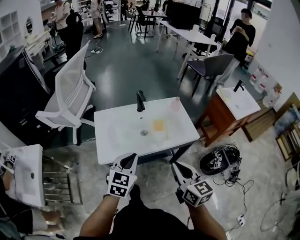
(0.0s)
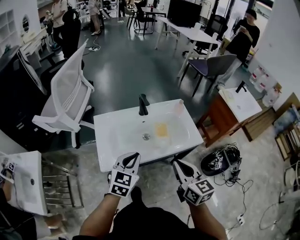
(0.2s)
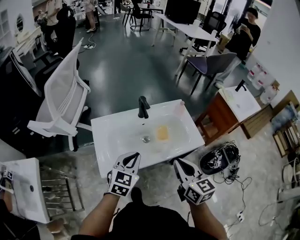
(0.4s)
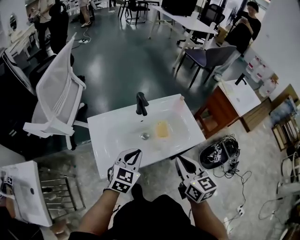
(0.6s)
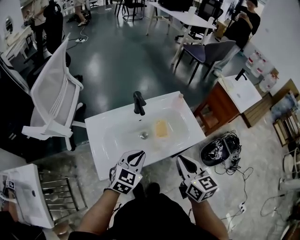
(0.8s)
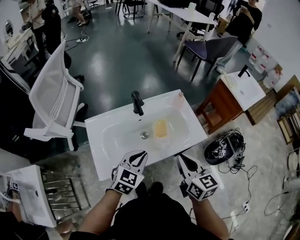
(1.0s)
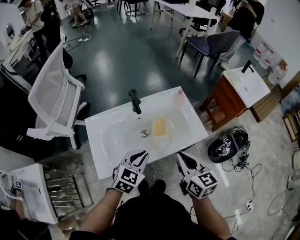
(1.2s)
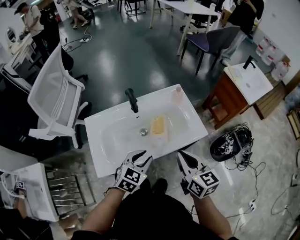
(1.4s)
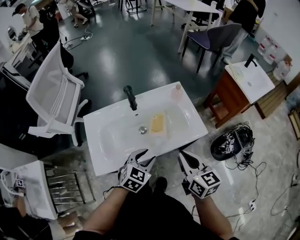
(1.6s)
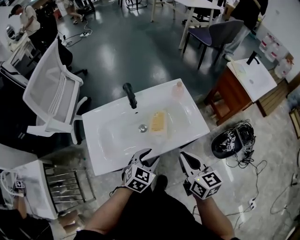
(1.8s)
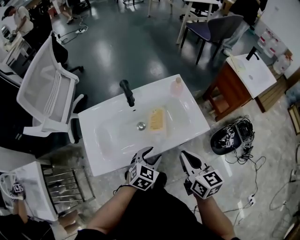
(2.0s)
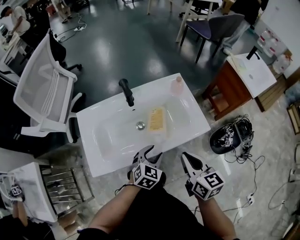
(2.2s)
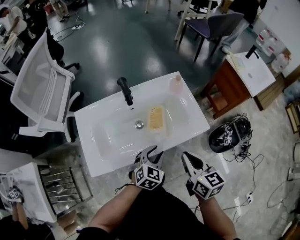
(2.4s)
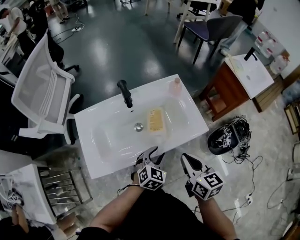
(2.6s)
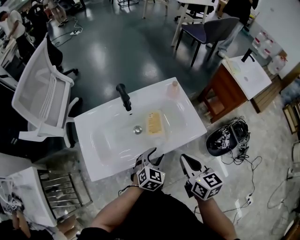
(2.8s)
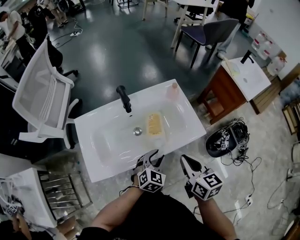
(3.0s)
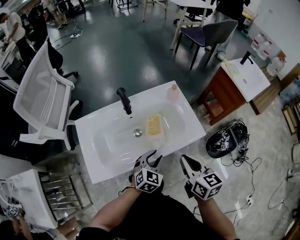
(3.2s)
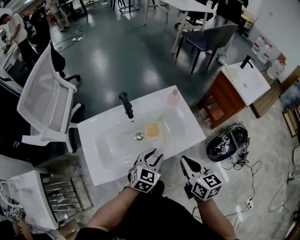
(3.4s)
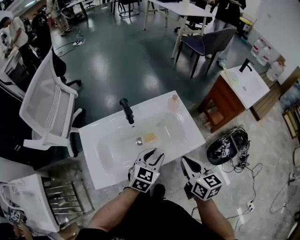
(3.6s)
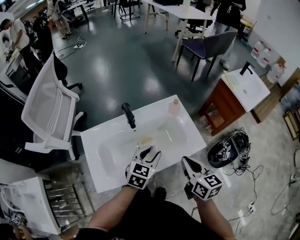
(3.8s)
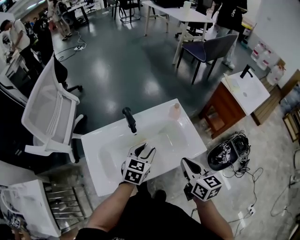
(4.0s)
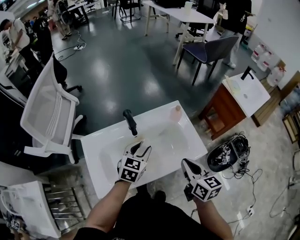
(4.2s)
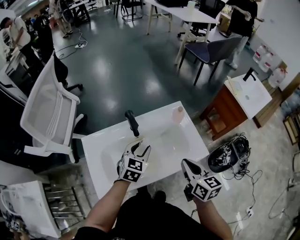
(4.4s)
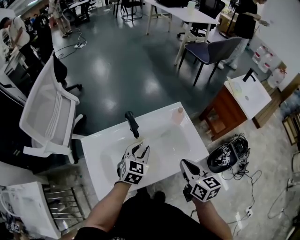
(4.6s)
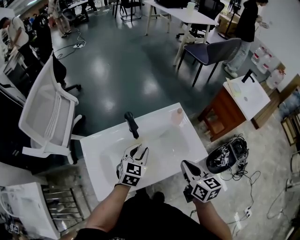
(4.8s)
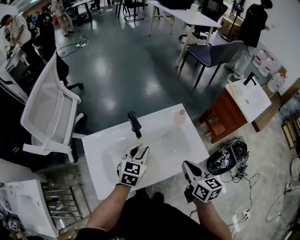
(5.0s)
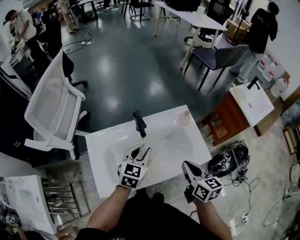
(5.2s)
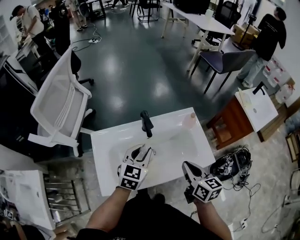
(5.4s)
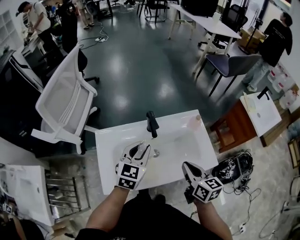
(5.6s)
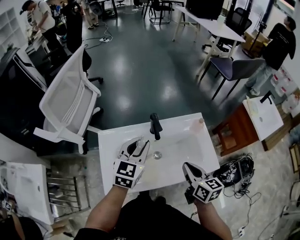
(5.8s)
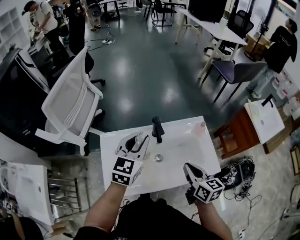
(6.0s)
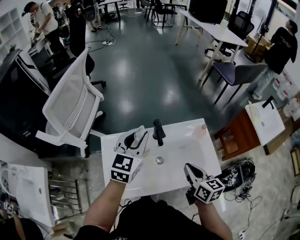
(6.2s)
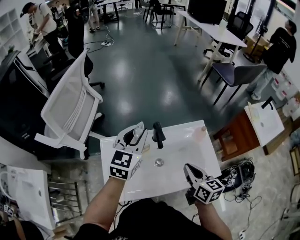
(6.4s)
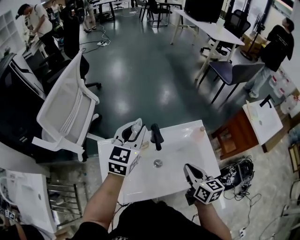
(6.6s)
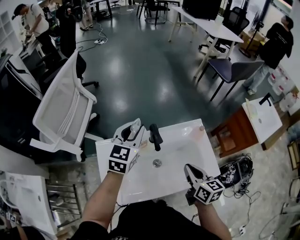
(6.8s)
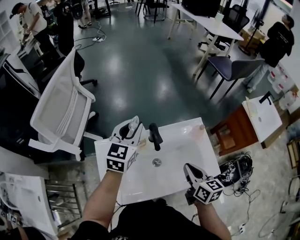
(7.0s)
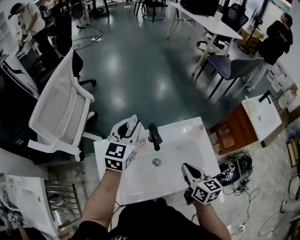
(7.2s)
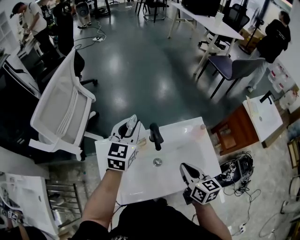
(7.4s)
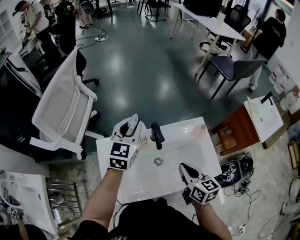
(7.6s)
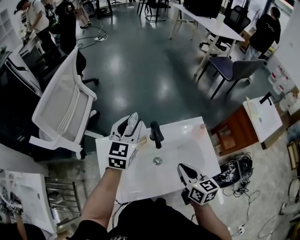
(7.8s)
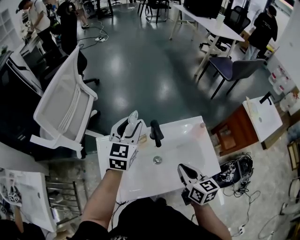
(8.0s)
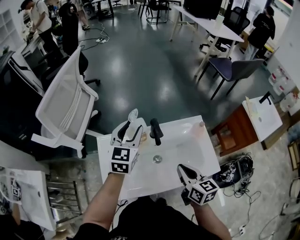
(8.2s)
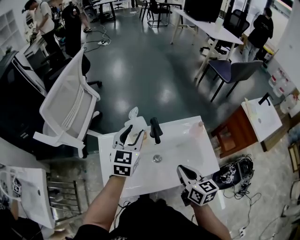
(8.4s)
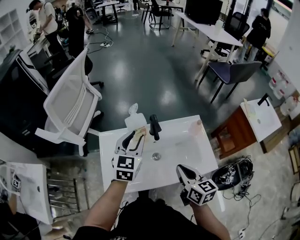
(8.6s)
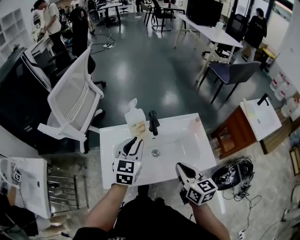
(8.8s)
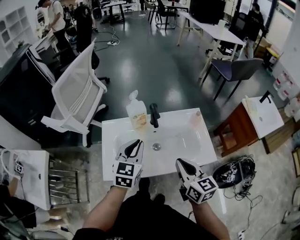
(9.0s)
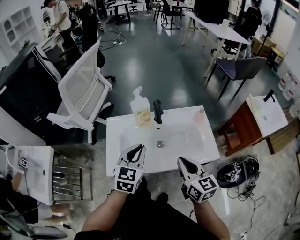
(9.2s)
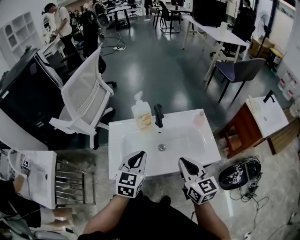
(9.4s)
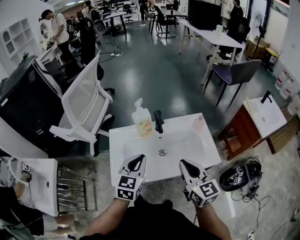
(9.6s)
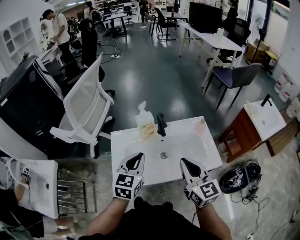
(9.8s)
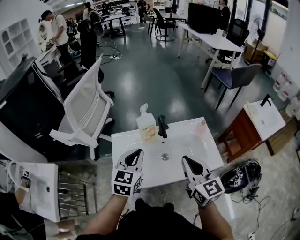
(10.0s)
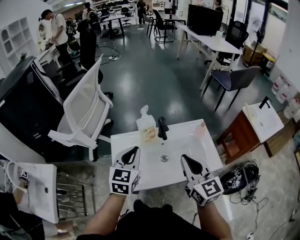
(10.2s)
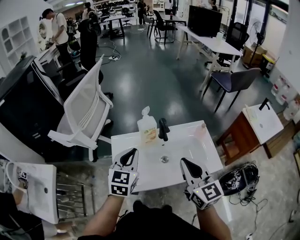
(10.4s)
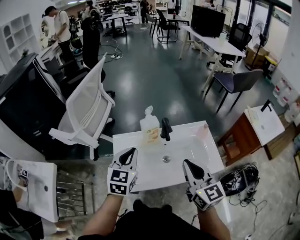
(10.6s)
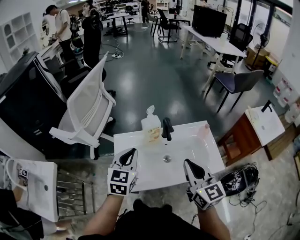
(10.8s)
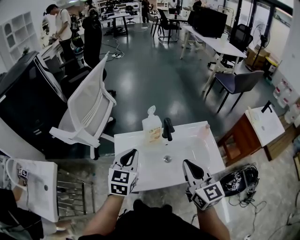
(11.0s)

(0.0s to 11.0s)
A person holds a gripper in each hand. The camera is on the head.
0.0s - 1.6s: The right gripper shifts some 15 cm forward; the left gripper travels forward, downward and to the right by some 20 cm, rotates approximately 20 degrees, and opens up.
1.6s - 3.2s: The left gripper heads downward, covering roughly 5 cm.
3.2s - 4.8s: The right gripper travels forward by about 10 cm. The left gripper shifts approximately 20 cm forward, to the left and upward.
4.8s - 6.2s: The right gripper goes some 10 cm to the left. Meanwhile the left gripper travels upward and to the left by about 20 cm, and changes its angle by some 20 degrees.
6.2s - 7.8s: The left gripper shifts about 10 cm forward.
7.8s - 9.4s: The right gripper heads backward and upward, covering roughly 15 cm, while the left gripper heads backward, covering about 30 cm, and closes its fingers.
9.4s - 11.0s: The left gripper moves to the left and forward, some 10 cm, while the right gripper goes approximately 10 cm to the left and upward.

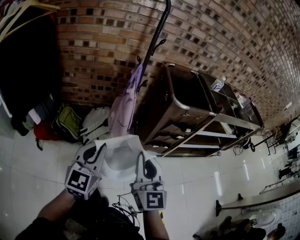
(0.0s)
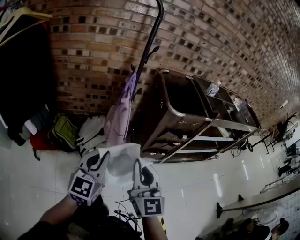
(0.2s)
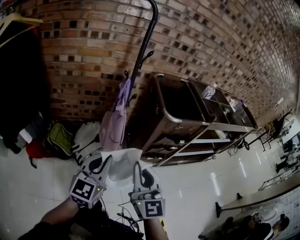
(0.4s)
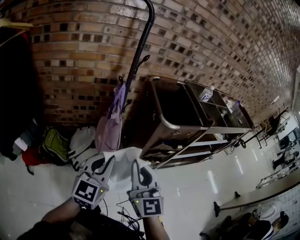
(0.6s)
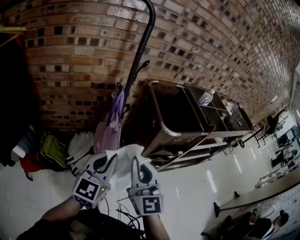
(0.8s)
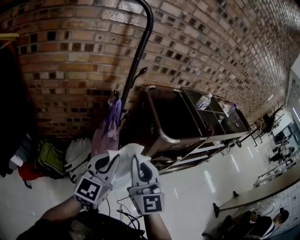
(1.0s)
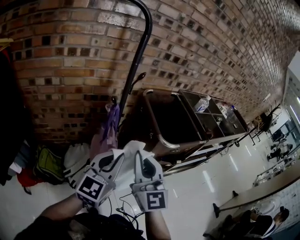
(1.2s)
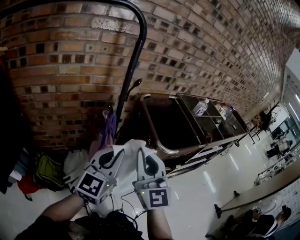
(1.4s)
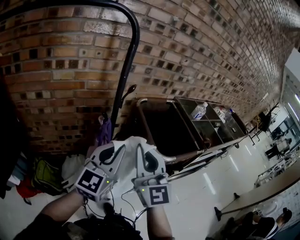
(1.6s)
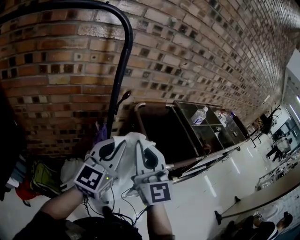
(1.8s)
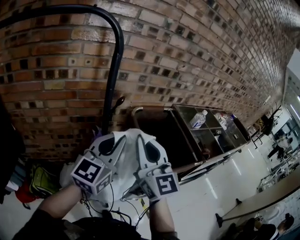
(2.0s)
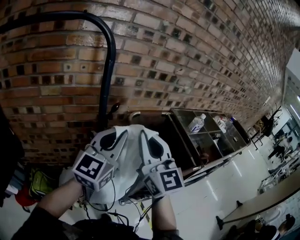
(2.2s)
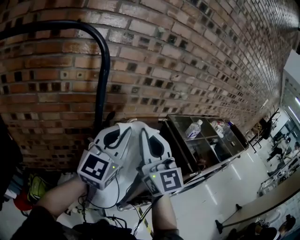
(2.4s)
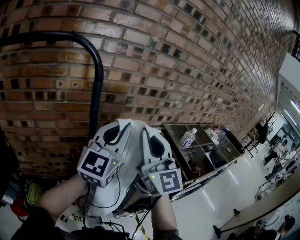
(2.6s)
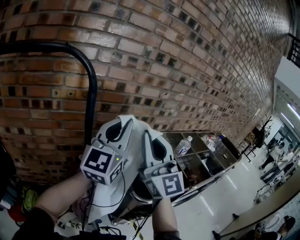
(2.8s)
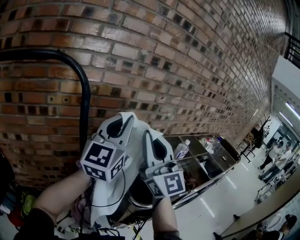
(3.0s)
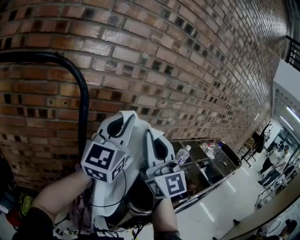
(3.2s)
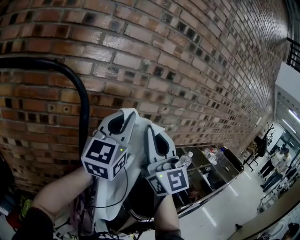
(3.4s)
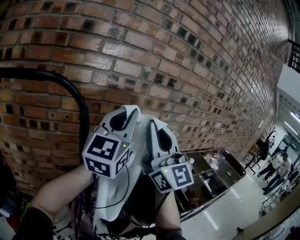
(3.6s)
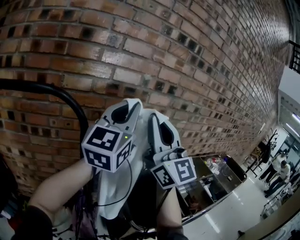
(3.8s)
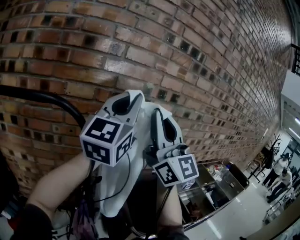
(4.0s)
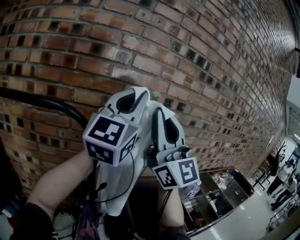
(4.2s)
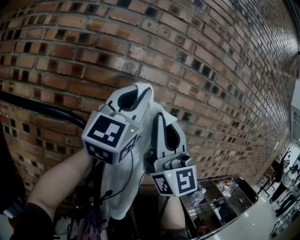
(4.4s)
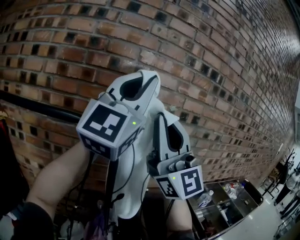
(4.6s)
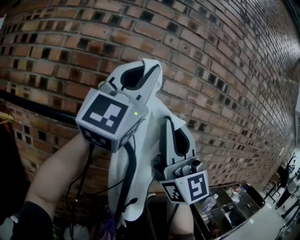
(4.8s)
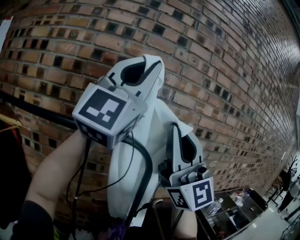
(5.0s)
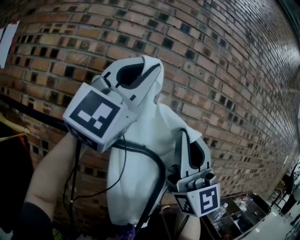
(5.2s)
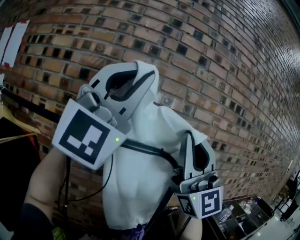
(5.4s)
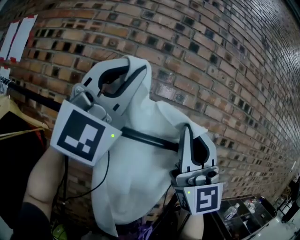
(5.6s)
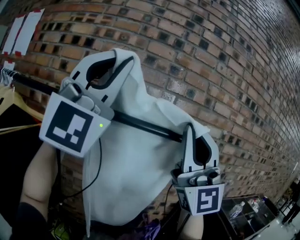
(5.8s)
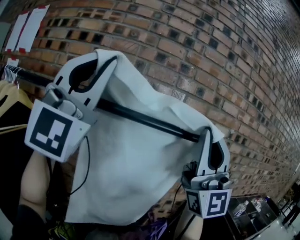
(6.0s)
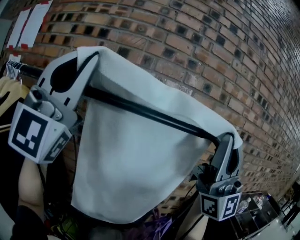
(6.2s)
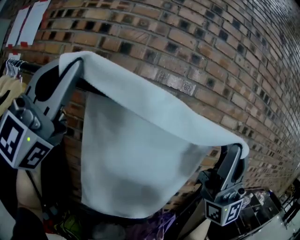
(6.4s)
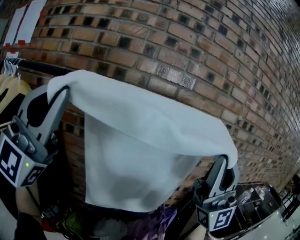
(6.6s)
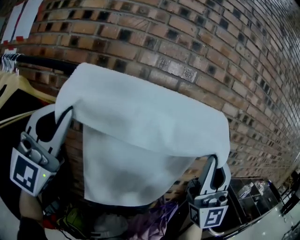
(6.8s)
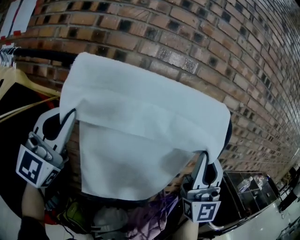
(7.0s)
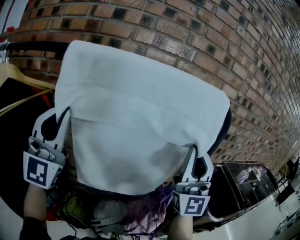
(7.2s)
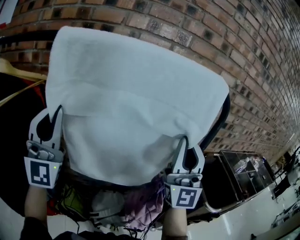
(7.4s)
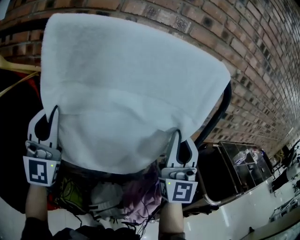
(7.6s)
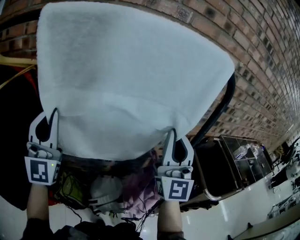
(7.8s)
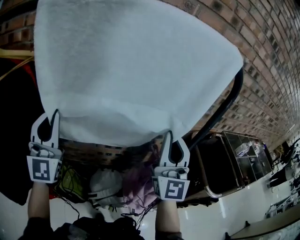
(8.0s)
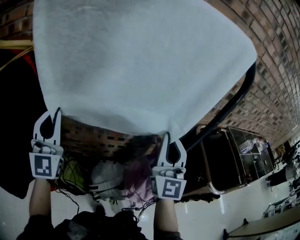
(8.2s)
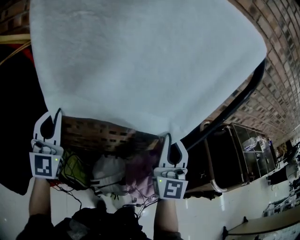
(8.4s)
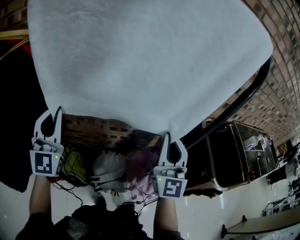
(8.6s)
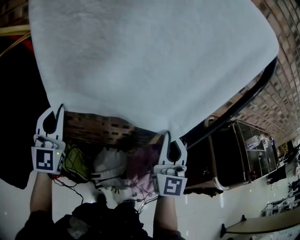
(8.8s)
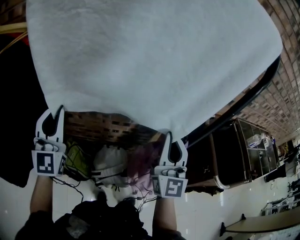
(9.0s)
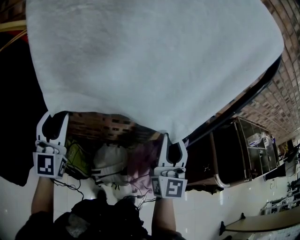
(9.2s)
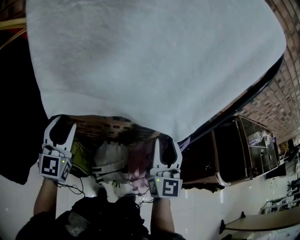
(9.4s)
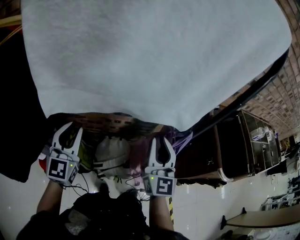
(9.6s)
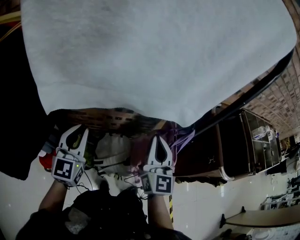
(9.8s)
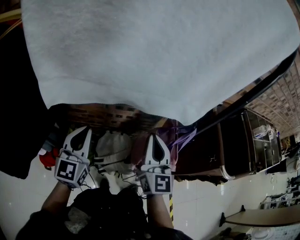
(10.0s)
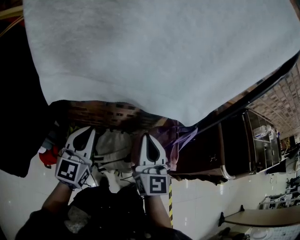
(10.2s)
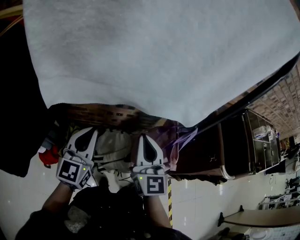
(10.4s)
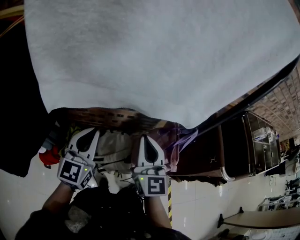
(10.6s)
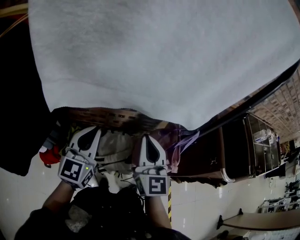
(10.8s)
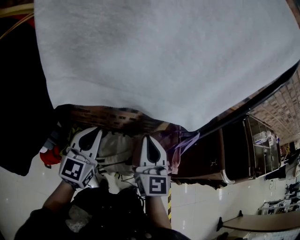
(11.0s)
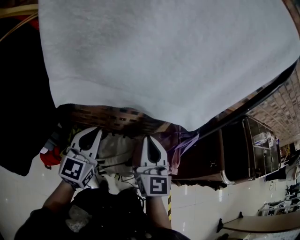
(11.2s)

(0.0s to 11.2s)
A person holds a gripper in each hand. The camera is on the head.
0.0s - 1.6s: Both grippers move forward, approximately 35 cm. The left gripper swivels approximately 20 degrees.
1.6s - 3.2s: Both grippers move upward, forward and to the right, approximately 35 cm. The right gripper swivels roughly 20 degrees. Meanwhile the left gripper turns by roughly 20 degrees.
3.2s - 4.8s: The two grippers go about 30 cm upward and to the left. The right gripper rotates approximately 20 degrees. Meanwhile the left gripper changes its angle by some 30 degrees.
4.8s - 6.4s: The right gripper travels to the left and backward by about 20 cm. Meanwhile the left gripper is displaced to the left by roughly 40 cm.
6.4s - 8.0s: The right gripper shifts roughly 30 cm downward and forward, and turns by approximately 40 degrees. Meanwhile the left gripper goes approximately 35 cm downward, and turns by approximately 30 degrees.
8.0s - 9.6s: The two grippers go some 20 cm downward. The right gripper swivels approximately 30 degrees, while the left gripper turns by approximately 30 degrees, and opens and closes again.
9.6s - 11.2s: The left gripper travels to the right by approximately 5 cm, and closes; the right gripper shifts some 5 cm to the left, and closes.

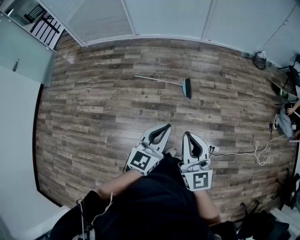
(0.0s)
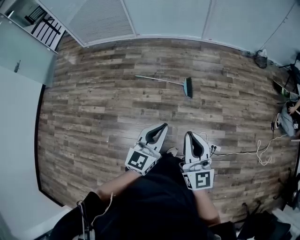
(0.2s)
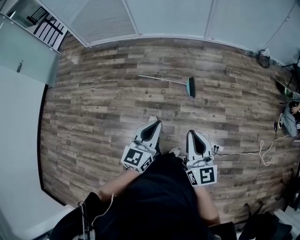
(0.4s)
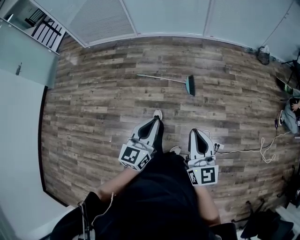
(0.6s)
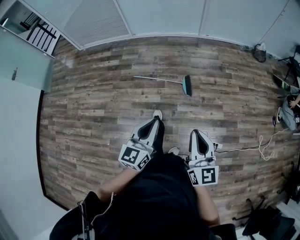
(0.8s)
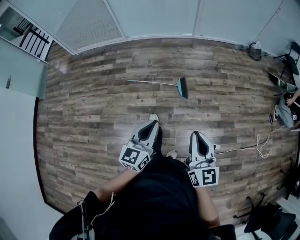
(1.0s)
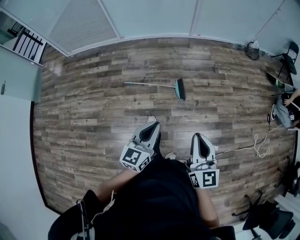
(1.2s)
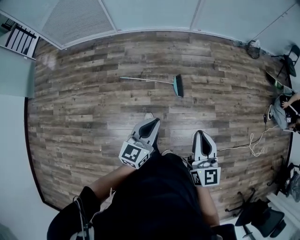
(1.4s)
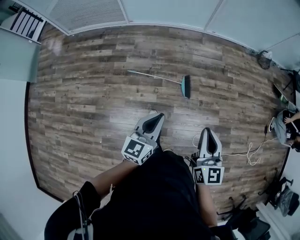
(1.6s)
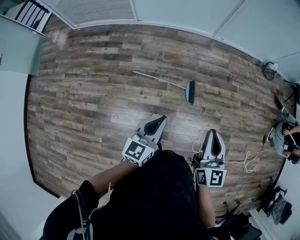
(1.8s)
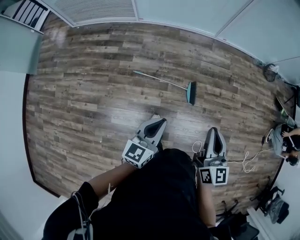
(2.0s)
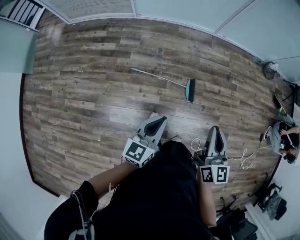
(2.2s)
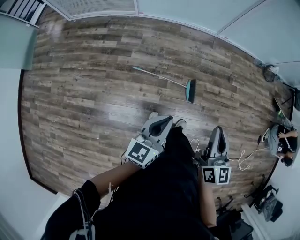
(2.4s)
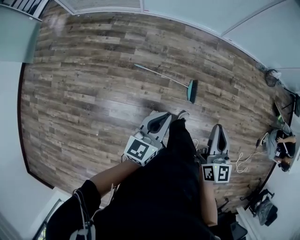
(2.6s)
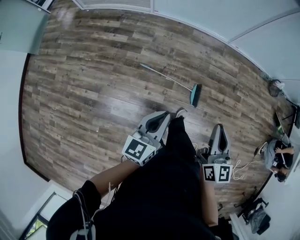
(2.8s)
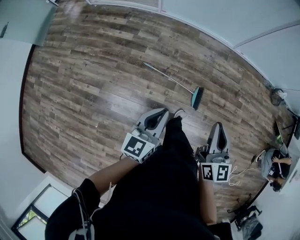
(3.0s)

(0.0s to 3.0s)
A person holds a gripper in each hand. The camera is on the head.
0.0s - 1.6s: Both grippers move forward, approximately 25 cm.
1.6s - 3.0s: The right gripper goes approximately 20 cm forward and to the left. Meanwhile the left gripper moves to the left and forward, roughly 20 cm.
